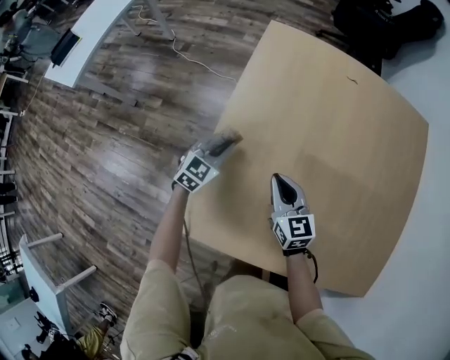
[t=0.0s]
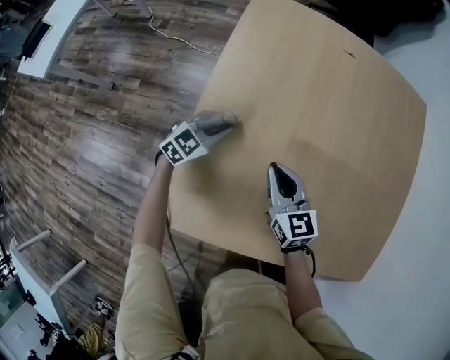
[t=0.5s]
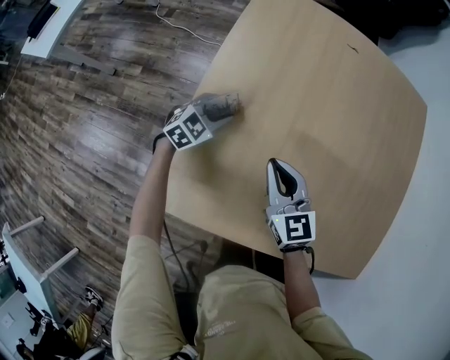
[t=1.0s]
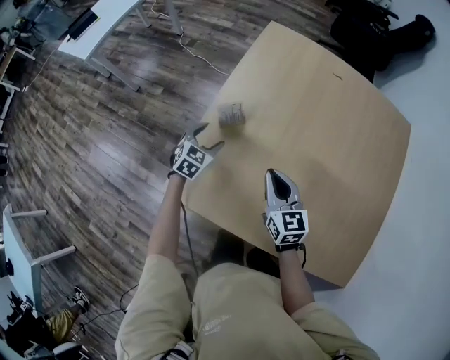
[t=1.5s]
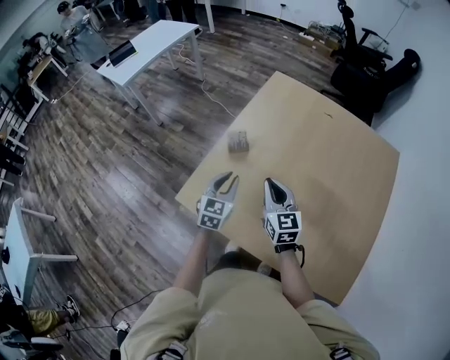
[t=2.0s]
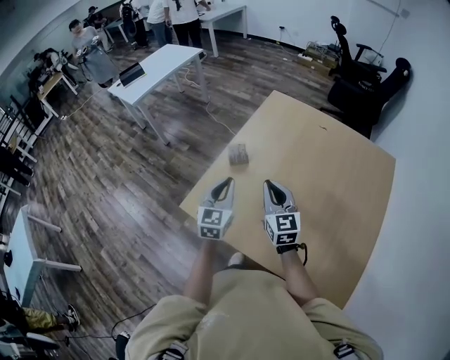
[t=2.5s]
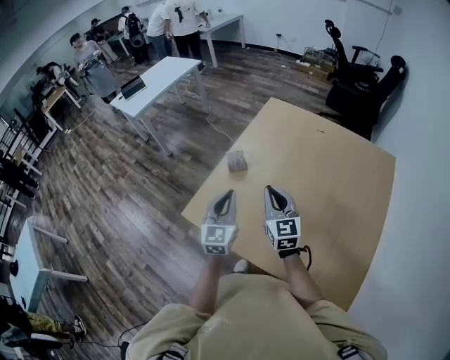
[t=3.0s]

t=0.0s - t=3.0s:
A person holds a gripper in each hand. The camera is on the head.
t=0.0s - t=1.5s: The left gripper travels backward by approximately 10 cm, and opens its fingers. The right gripper goes approximately 15 cm backward, to the right and upward.
t=1.5s - t=3.0s: The left gripper travels upward and backward by some 35 cm, angles its fingers upward, by roughly 40 degrees, and closes its fingers, while the right gripper moves upward and backward, about 20 cm.

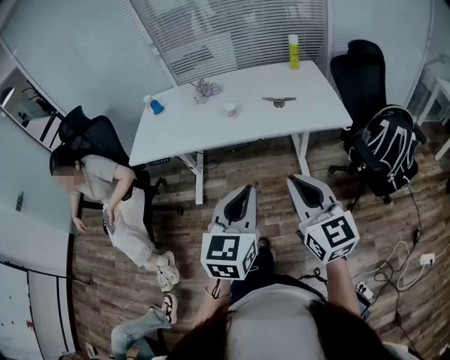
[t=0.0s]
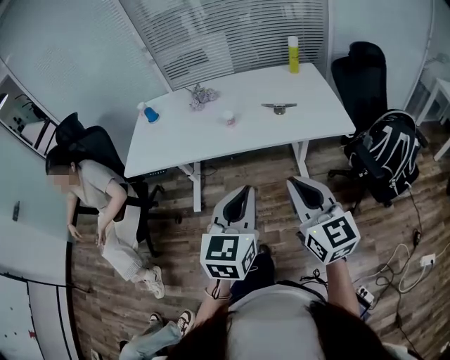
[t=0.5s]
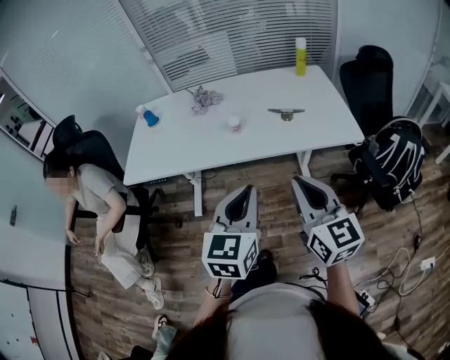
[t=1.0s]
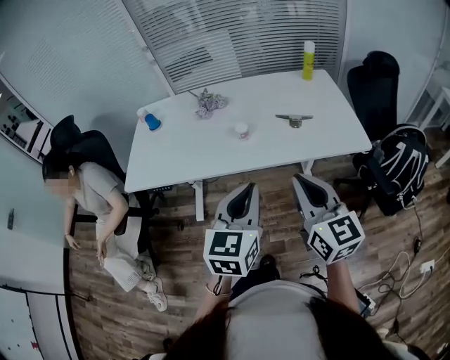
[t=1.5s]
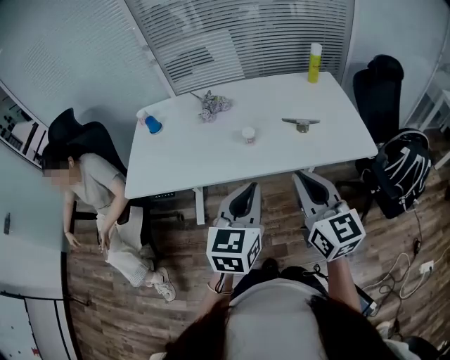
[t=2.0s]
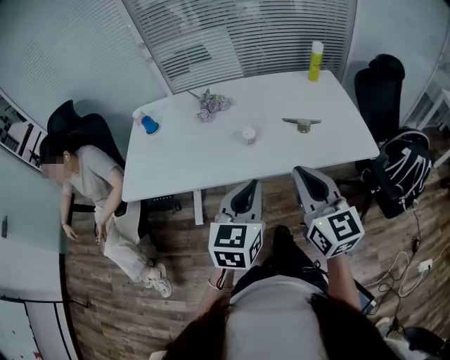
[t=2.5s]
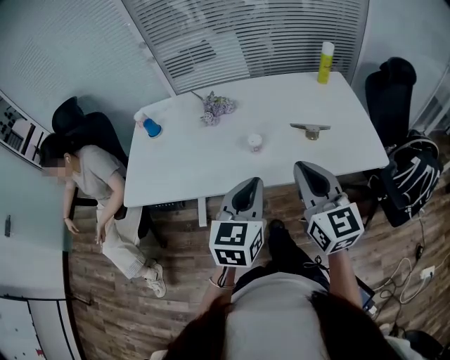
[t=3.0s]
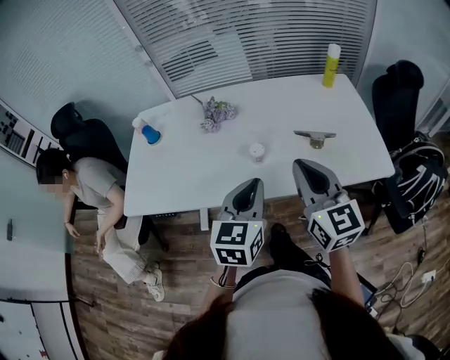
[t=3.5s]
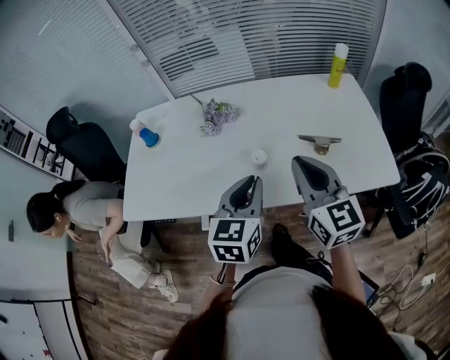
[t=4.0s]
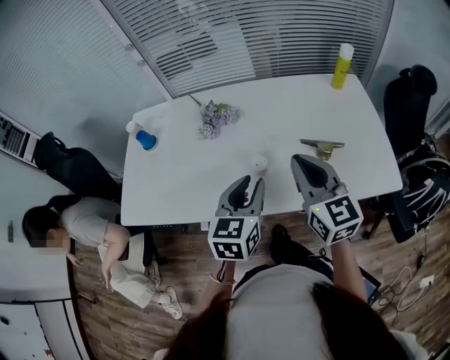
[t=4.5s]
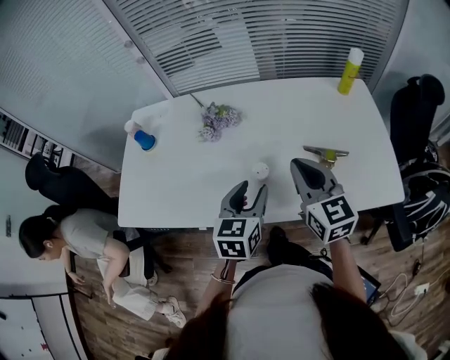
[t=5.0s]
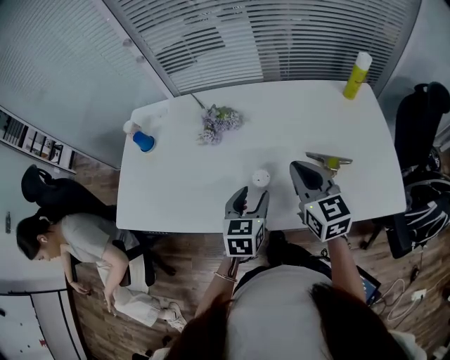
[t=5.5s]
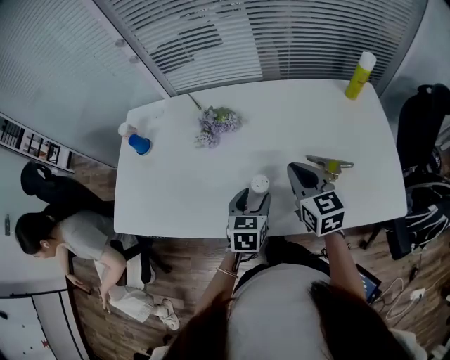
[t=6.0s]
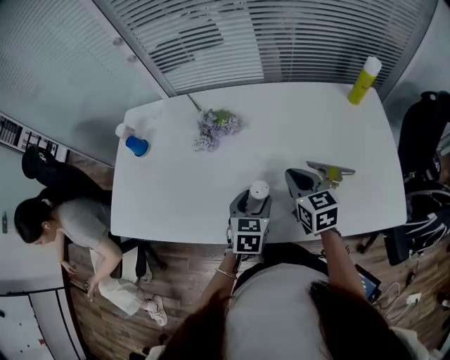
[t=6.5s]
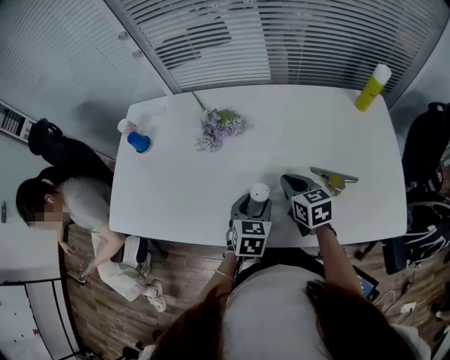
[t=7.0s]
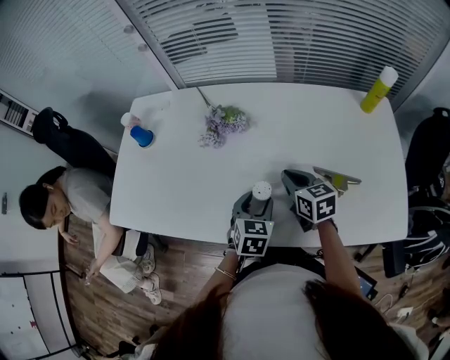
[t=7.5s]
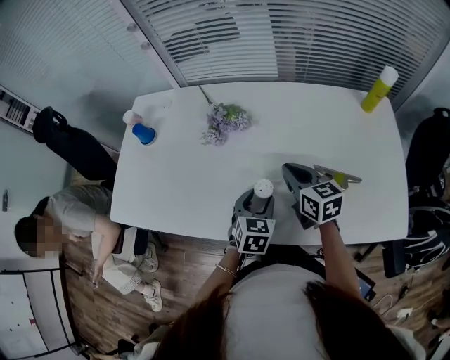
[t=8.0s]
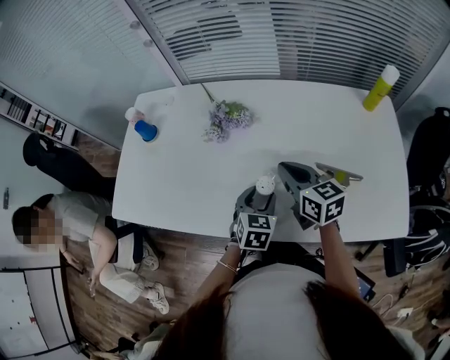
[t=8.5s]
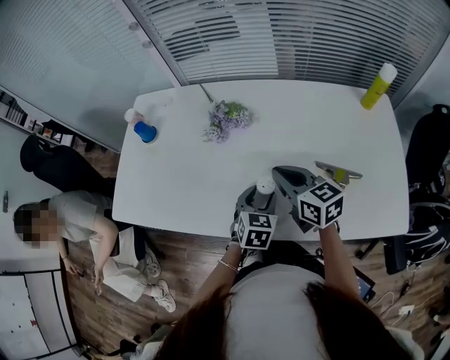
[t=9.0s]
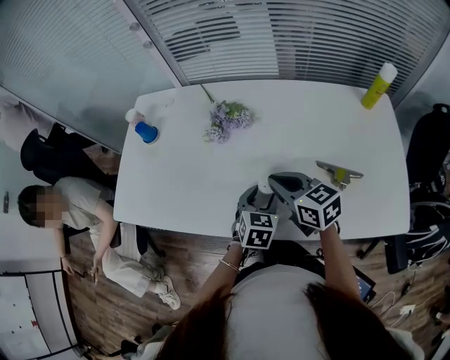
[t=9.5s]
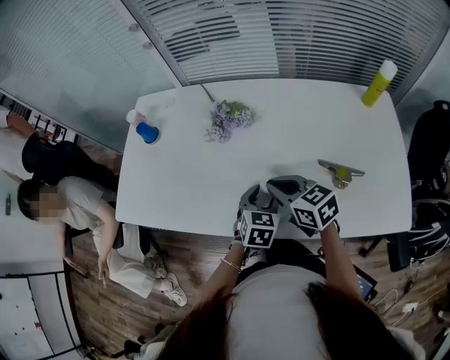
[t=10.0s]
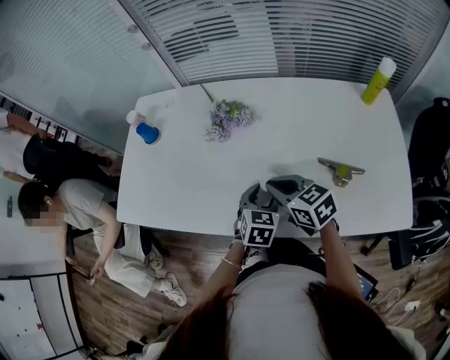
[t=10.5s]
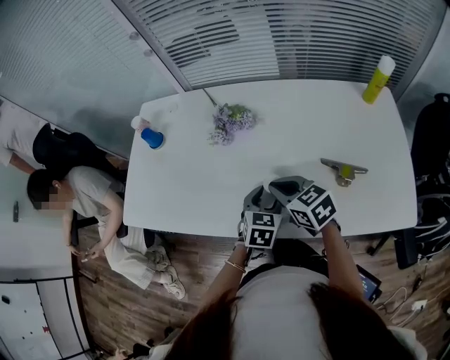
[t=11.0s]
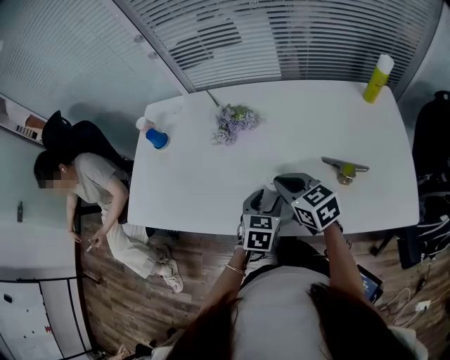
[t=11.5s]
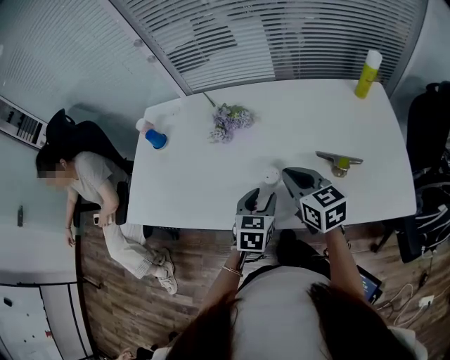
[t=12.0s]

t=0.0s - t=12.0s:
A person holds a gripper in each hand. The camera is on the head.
t=0.0s - t=2.0s: Both grippers travel together forward, some 20 cm.
t=2.0s - t=4.0s: The two grippers go roughly 20 cm forward.
t=4.0s - t=6.0s: The right gripper moves forward and downward, roughly 20 cm. Meanwhile the left gripper moves downward and forward, approximately 20 cm, and opens.
t=6.0s - t=8.0s: The right gripper travels downward by roughly 5 cm.
t=8.0s - t=10.0s: The right gripper heads to the left, covering approximately 10 cm.
t=10.0s - t=12.0s: The right gripper changes place by about 5 cm; the left gripper ends up roughly 5 cm from where it was.

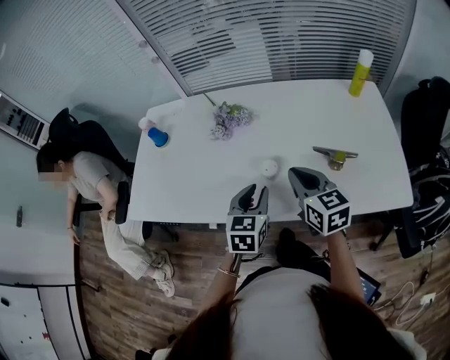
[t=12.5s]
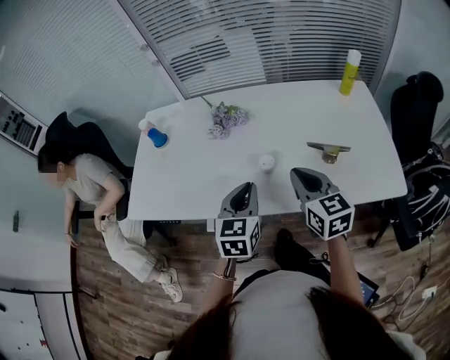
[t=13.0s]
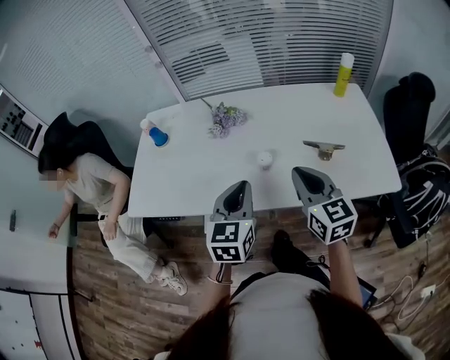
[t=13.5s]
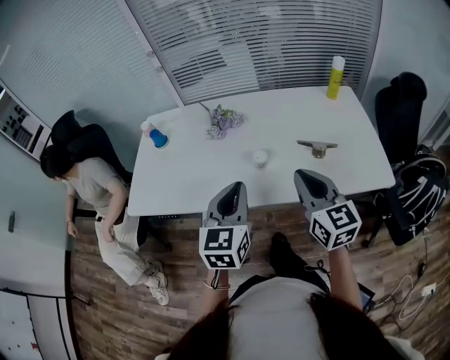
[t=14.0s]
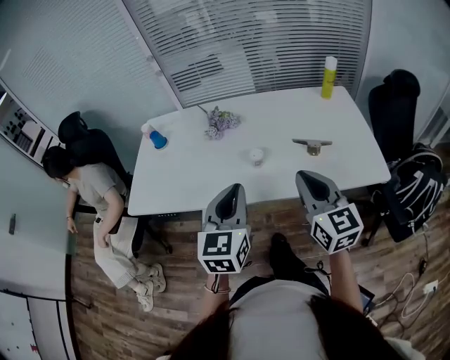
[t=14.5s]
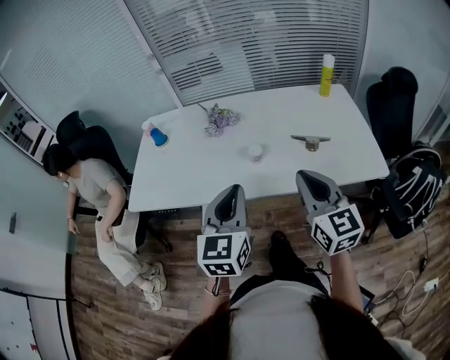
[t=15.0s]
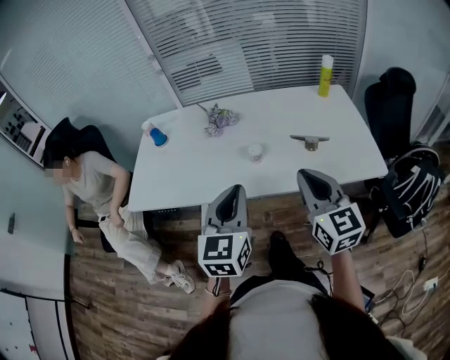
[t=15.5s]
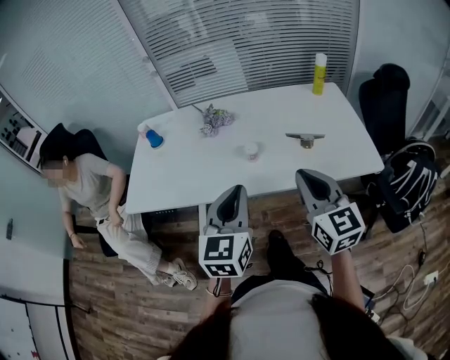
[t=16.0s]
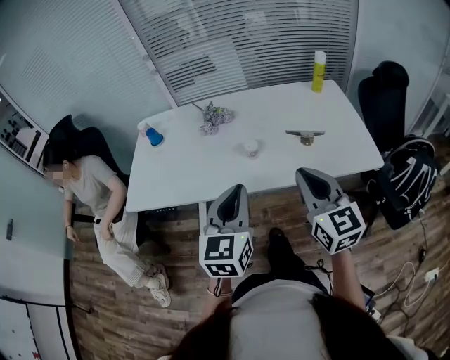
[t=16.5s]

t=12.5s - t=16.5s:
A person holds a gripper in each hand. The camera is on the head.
t=12.5s - t=14.5s: The left gripper is displaced upward and backward by about 20 cm, and closes up. The right gripper goes approximately 20 cm backward and upward, and rotates about 20 degrees.
t=14.5s - t=16.5s: The right gripper ends up some 5 cm from where it was.

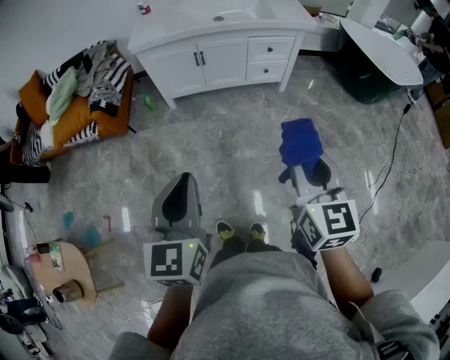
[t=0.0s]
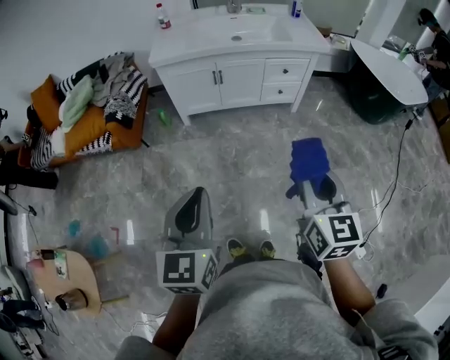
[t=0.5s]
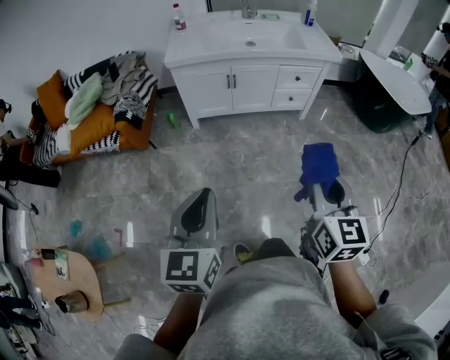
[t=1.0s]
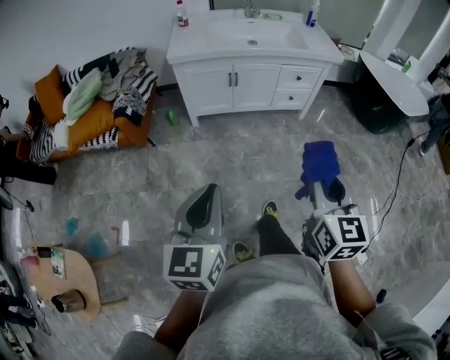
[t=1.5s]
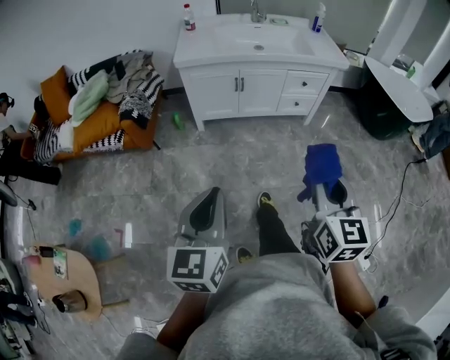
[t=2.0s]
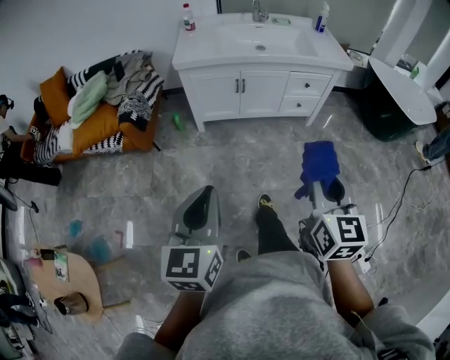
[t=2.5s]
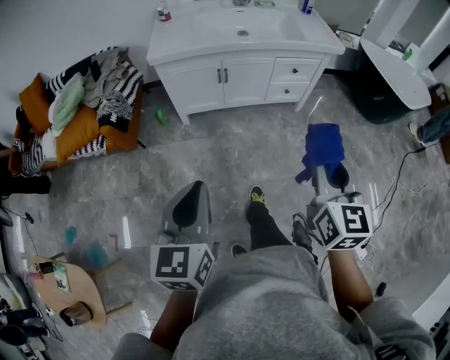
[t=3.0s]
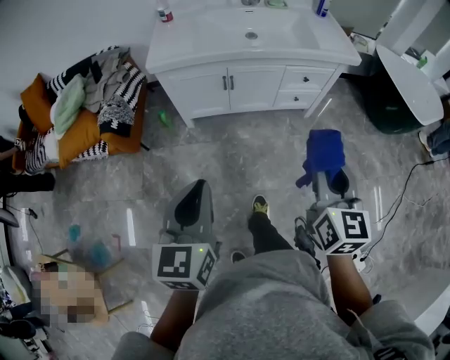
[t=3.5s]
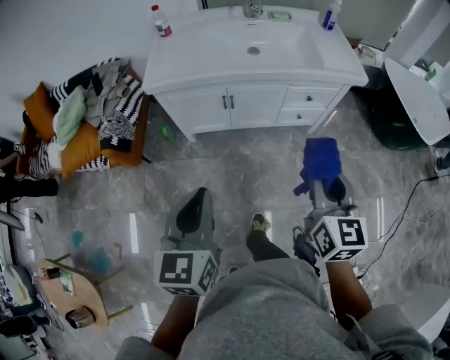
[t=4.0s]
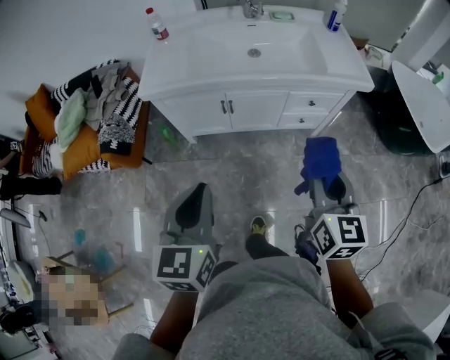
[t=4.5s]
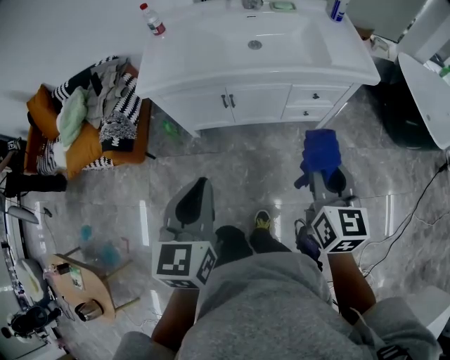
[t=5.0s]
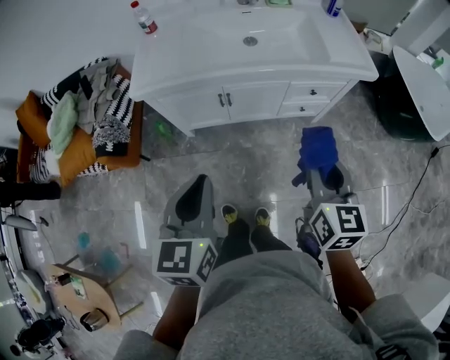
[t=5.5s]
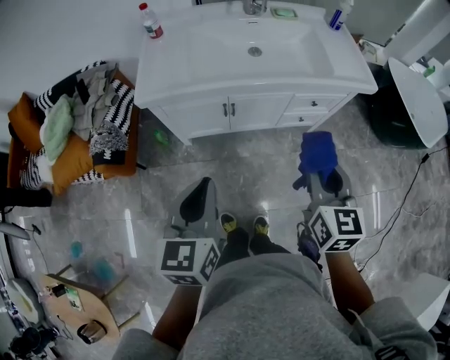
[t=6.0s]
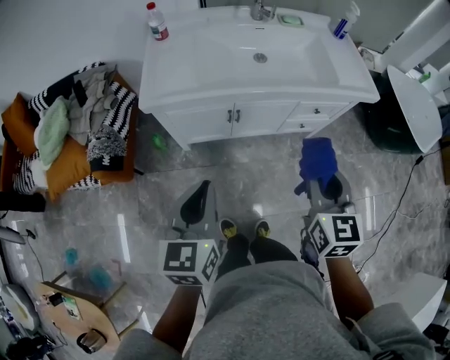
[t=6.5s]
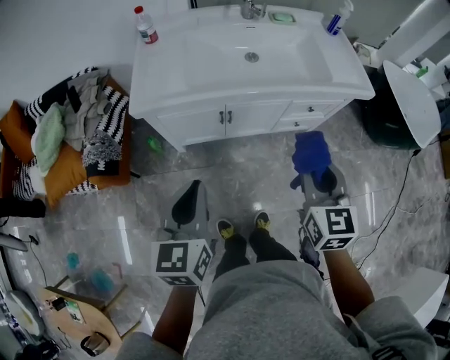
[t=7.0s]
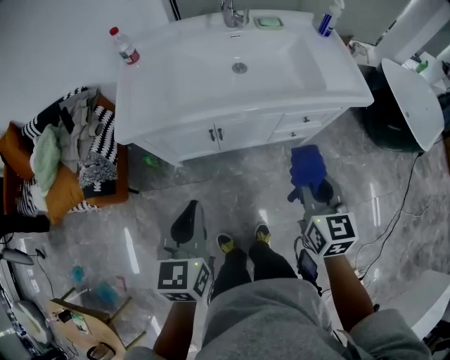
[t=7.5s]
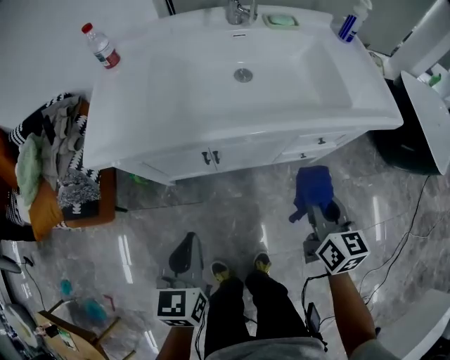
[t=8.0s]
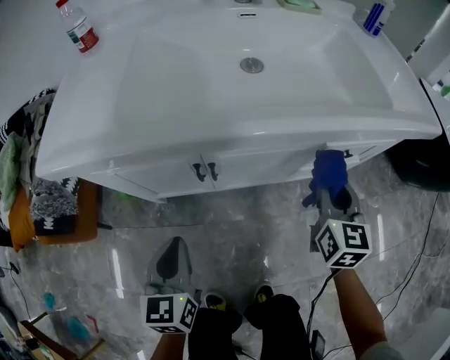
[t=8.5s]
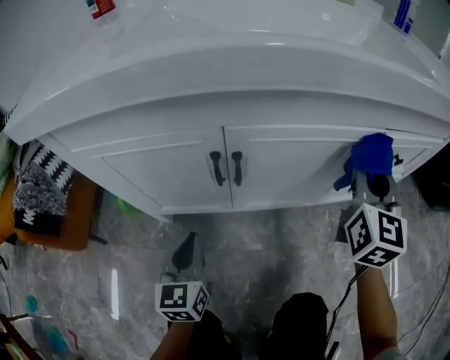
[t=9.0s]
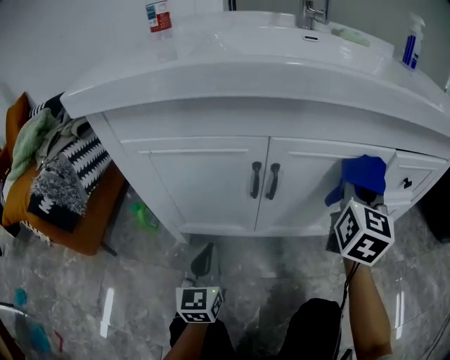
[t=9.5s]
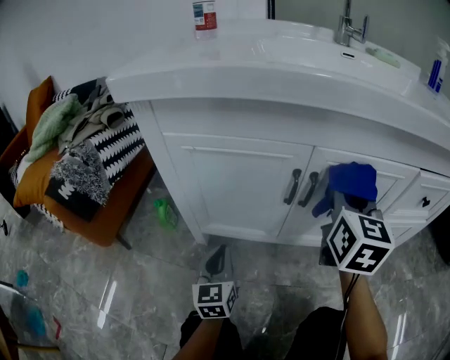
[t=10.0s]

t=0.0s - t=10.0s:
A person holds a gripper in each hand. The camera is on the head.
t=0.0s - t=2.0s: The two grippers go approximately 10 cm to the left.
t=2.0s - t=4.0s: The two grippers go approximately 30 cm forward.
t=4.0s - t=6.0s: The grippers both shift forward by approximately 10 cm.
t=6.0s - t=8.0s: The grippers both shift downward and forward by about 25 cm.
t=8.0s - t=10.0s: The right gripper shifts some 30 cm downward, to the left and forward, and rotates some 20 degrees; the left gripper heads downward, covering some 40 cm, and changes its angle by approximately 20 degrees.
